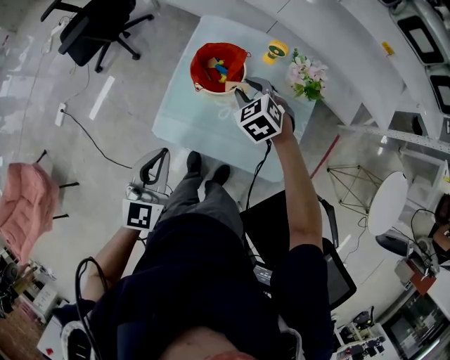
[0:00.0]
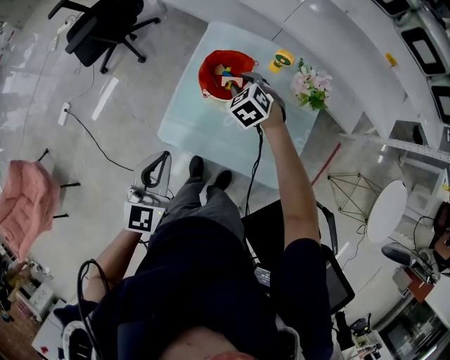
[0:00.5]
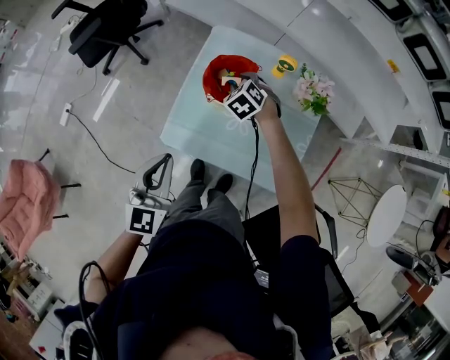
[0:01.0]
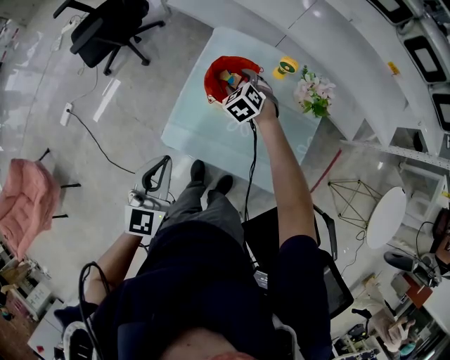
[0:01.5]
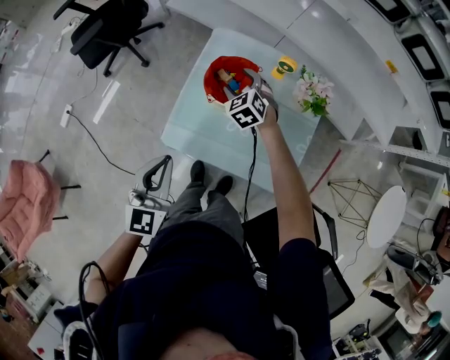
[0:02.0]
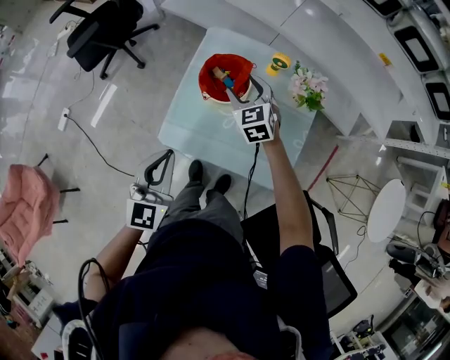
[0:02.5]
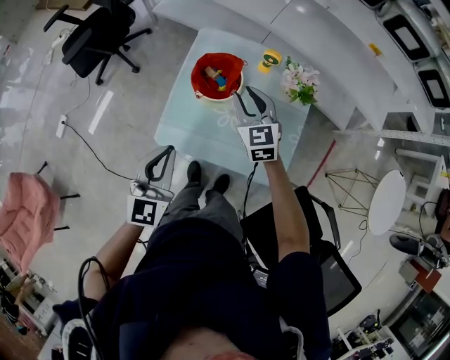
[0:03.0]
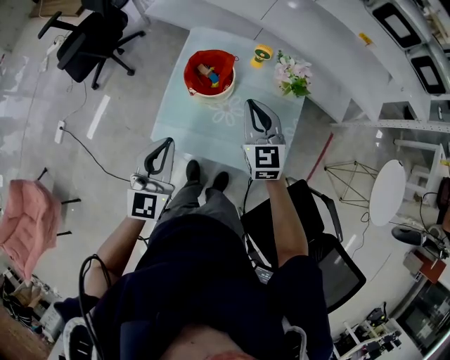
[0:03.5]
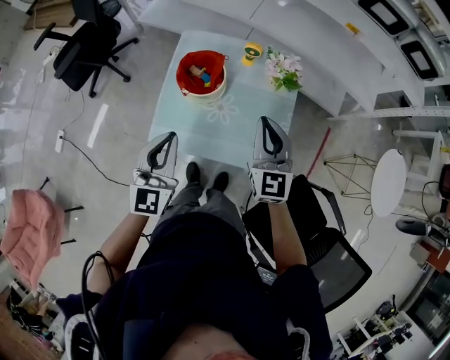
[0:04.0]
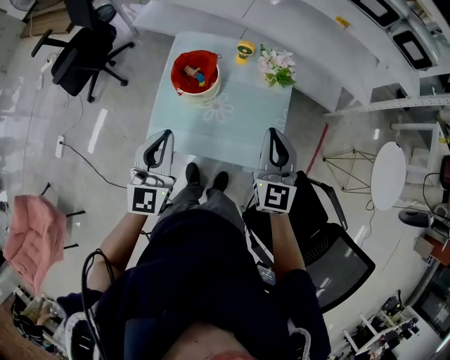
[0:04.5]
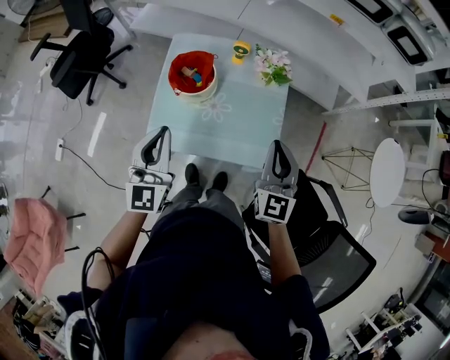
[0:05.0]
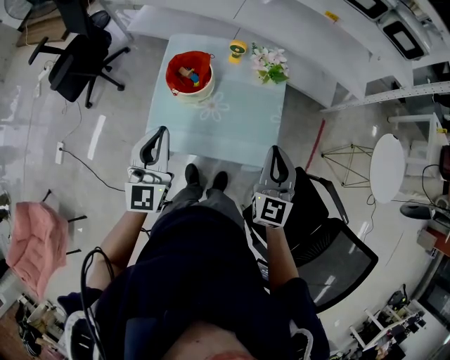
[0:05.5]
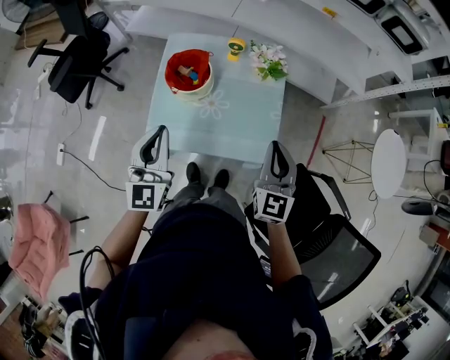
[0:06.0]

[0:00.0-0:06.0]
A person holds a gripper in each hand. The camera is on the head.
0:00.0 to 0:02.0: The right gripper travels forward and to the left by approximately 10 cm, and opens.
0:02.0 to 0:04.0: The right gripper shifts some 30 cm backward, upward and to the right, points its fingers about 40 degrees further upward, and closes; the left gripper heads to the right, covering about 5 cm.
0:04.0 to 0:06.0: The right gripper travels backward and to the right by about 10 cm.

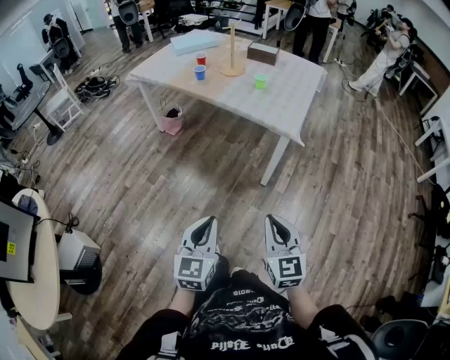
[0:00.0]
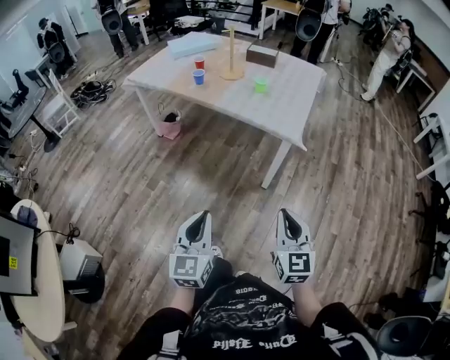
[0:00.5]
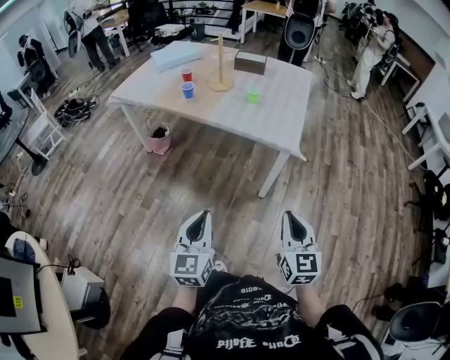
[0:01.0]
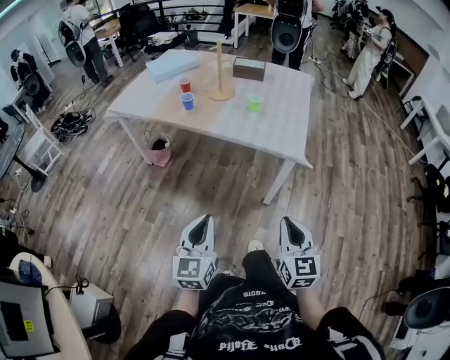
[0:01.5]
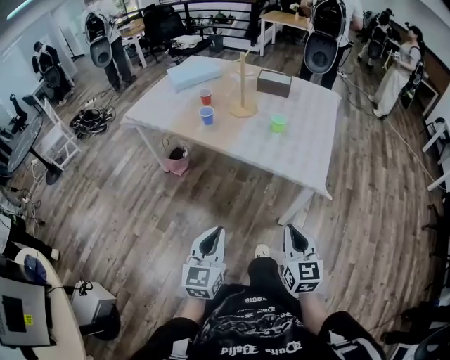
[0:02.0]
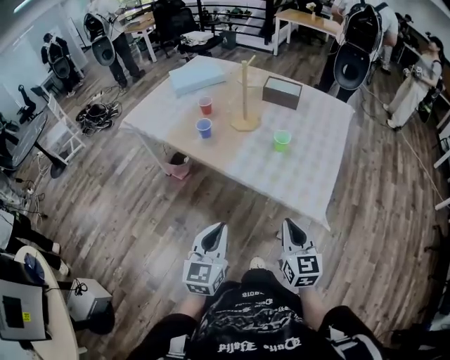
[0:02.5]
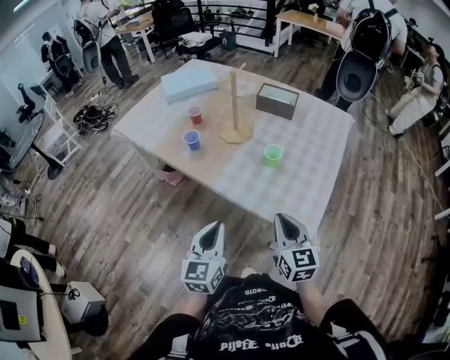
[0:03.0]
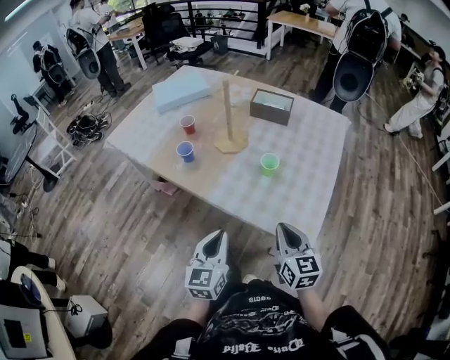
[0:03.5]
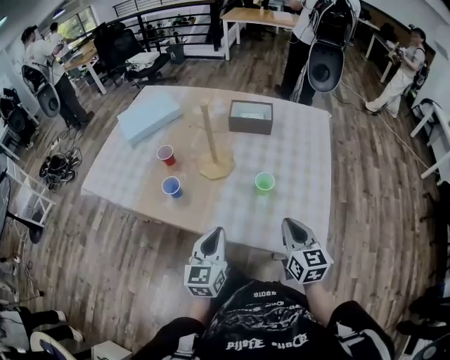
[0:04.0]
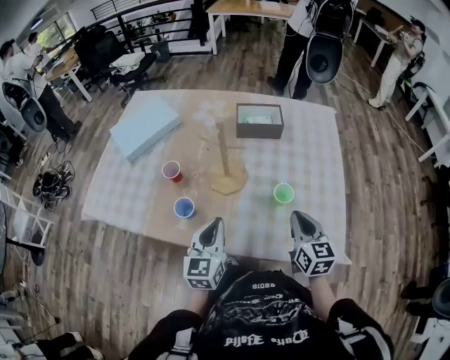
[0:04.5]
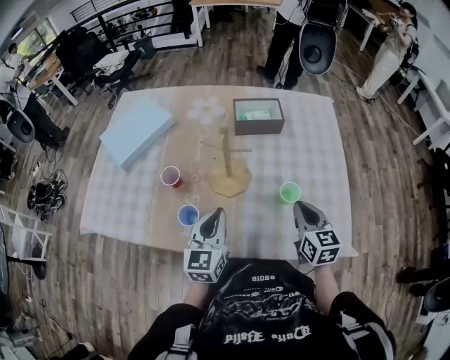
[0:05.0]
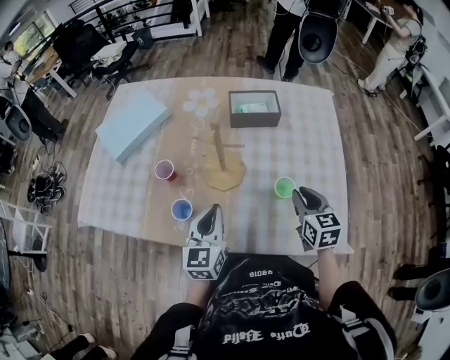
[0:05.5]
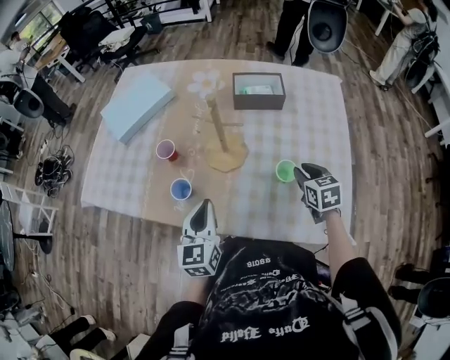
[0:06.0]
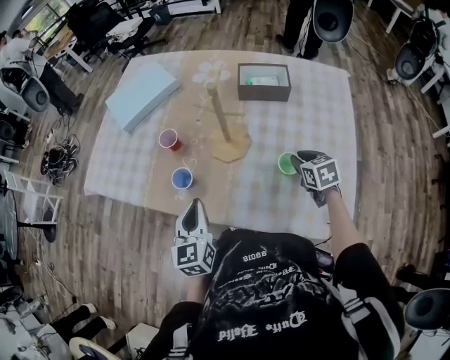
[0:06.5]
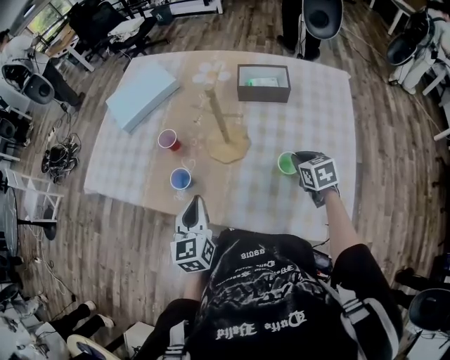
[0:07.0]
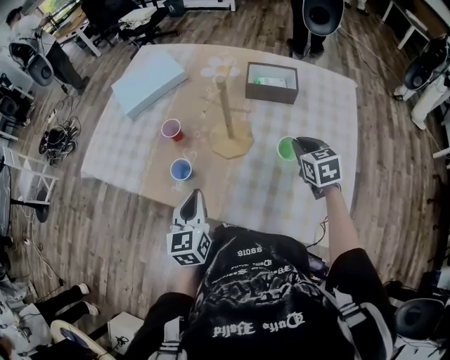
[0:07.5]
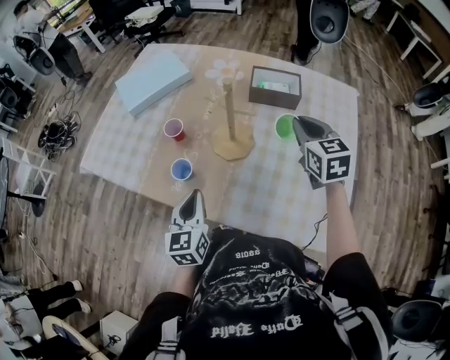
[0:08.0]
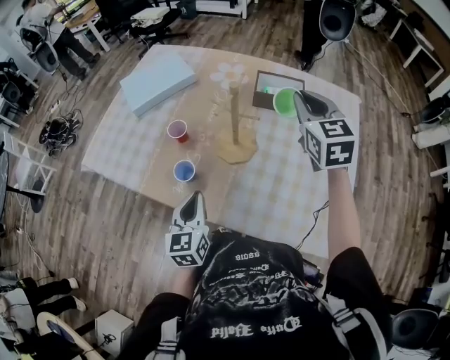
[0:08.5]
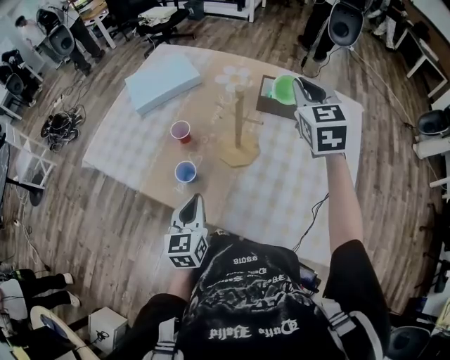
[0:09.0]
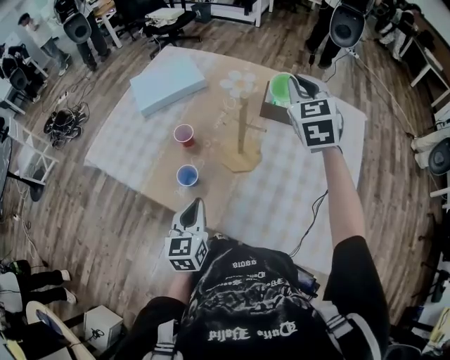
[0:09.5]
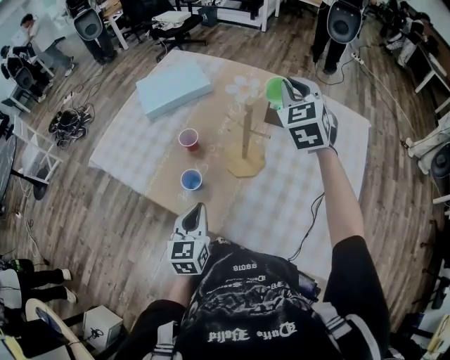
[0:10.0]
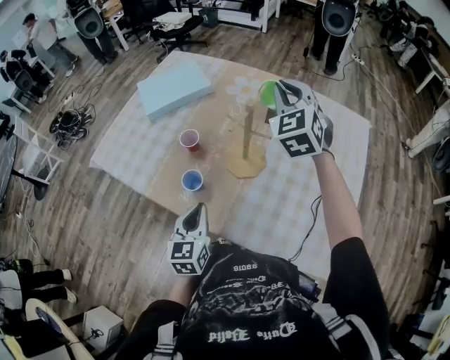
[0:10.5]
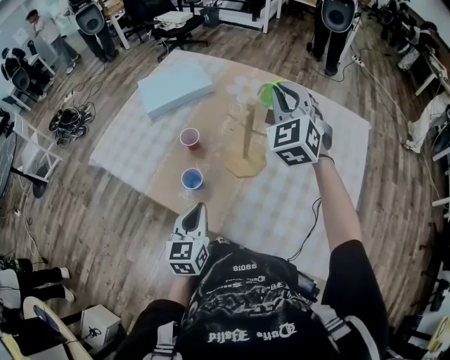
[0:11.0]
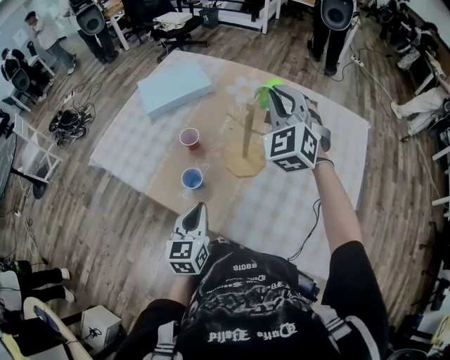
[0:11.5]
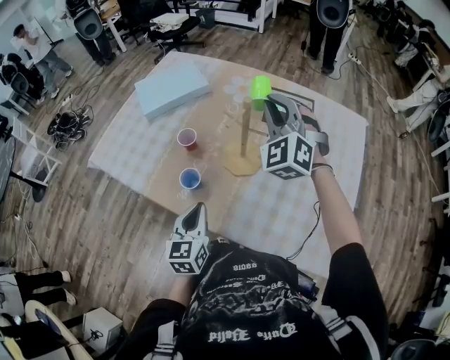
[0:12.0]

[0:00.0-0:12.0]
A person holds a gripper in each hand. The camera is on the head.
0:00.0 to 0:02.0: The right gripper goes roughly 30 cm forward. The left gripper moves forward and to the left, about 35 cm.
0:02.0 to 0:04.0: The pair of grippers is taken forward, some 50 cm.
0:04.0 to 0:06.0: The left gripper goes roughly 20 cm forward and to the left; the right gripper goes roughly 20 cm forward, changes its angle by about 20 degrees, and opens.
0:06.0 to 0:08.0: The right gripper travels upward and forward by about 15 cm, and changes its angle by roughly 20 degrees.
0:08.0 to 0:10.0: The right gripper heads upward, forward and to the left, covering roughly 20 cm, and changes its angle by roughly 30 degrees.
0:10.0 to 0:12.0: The right gripper heads backward, covering some 5 cm, and turns by roughly 20 degrees.

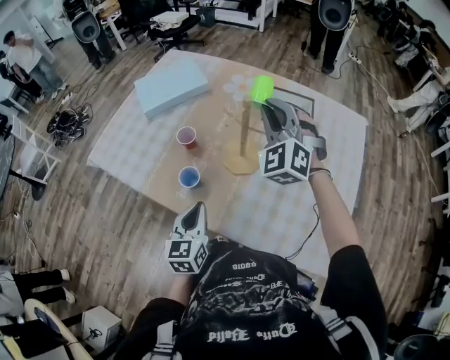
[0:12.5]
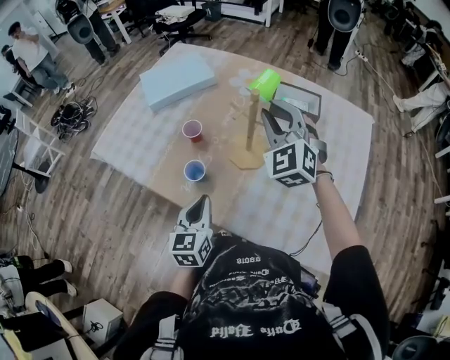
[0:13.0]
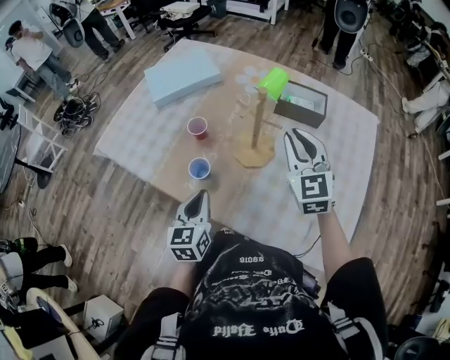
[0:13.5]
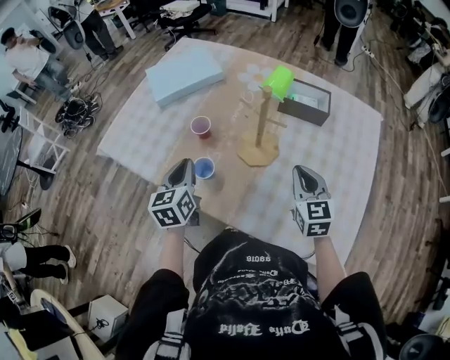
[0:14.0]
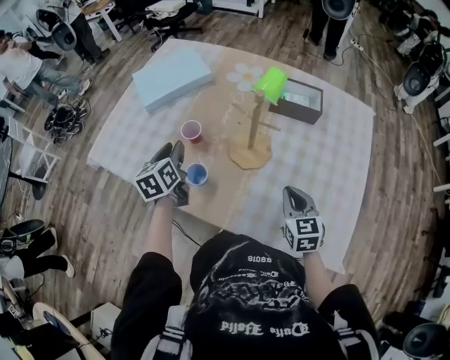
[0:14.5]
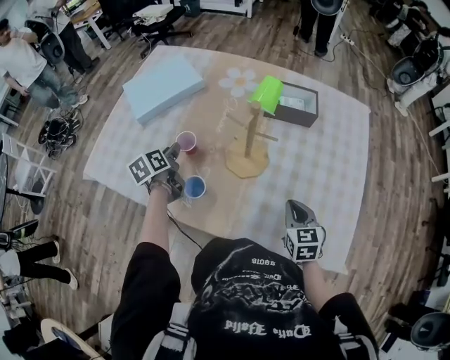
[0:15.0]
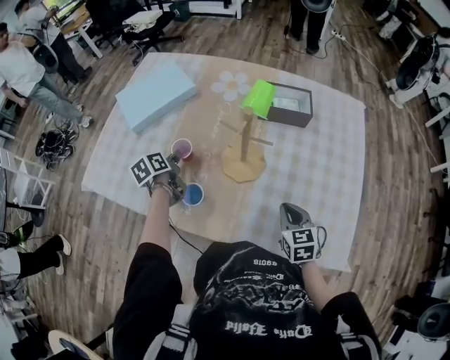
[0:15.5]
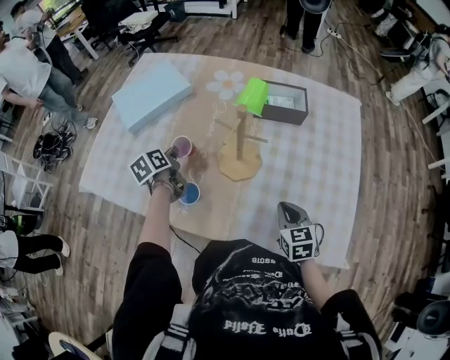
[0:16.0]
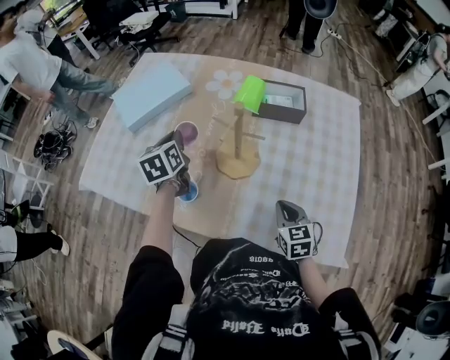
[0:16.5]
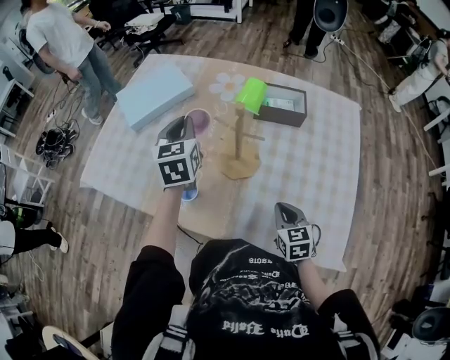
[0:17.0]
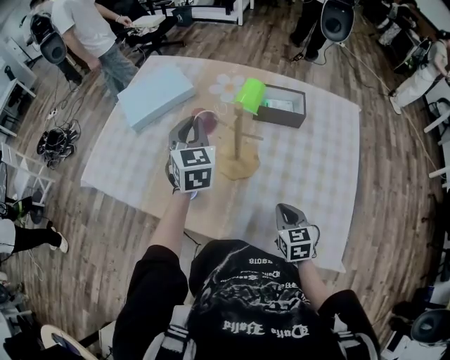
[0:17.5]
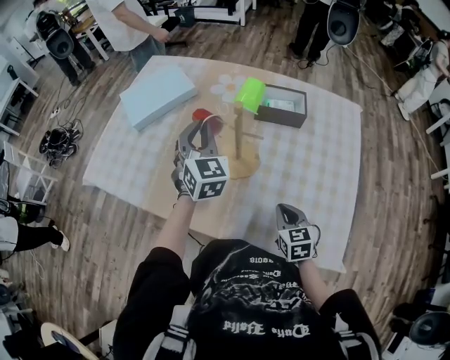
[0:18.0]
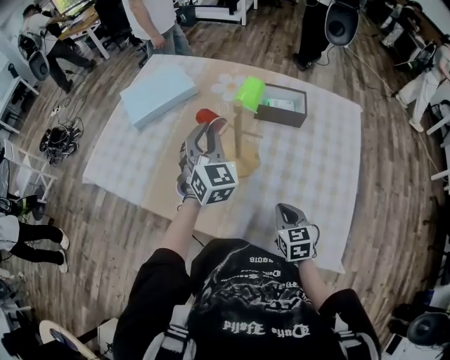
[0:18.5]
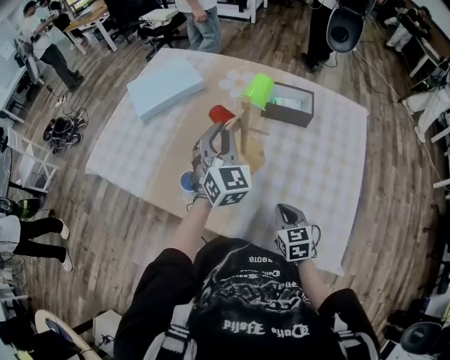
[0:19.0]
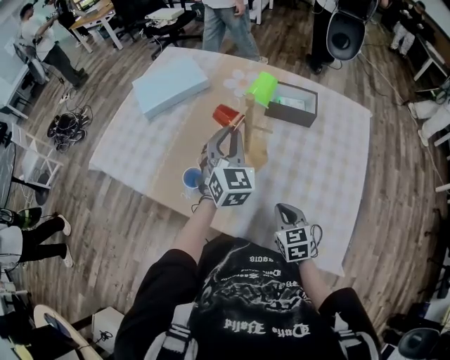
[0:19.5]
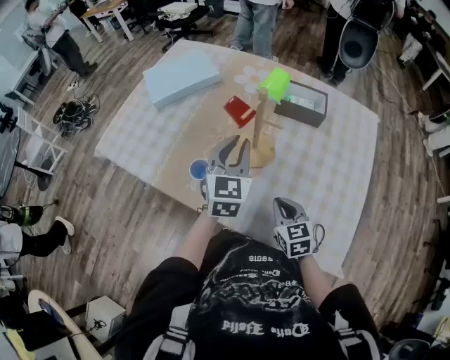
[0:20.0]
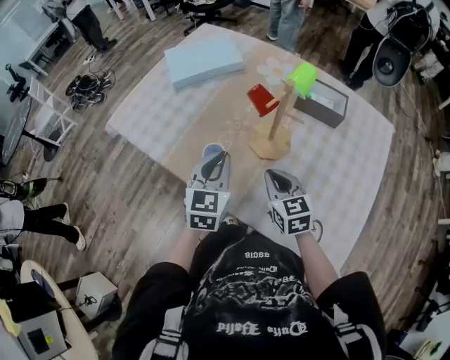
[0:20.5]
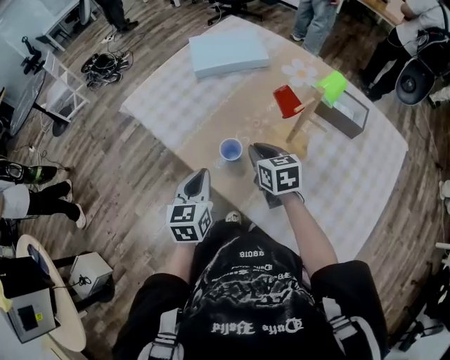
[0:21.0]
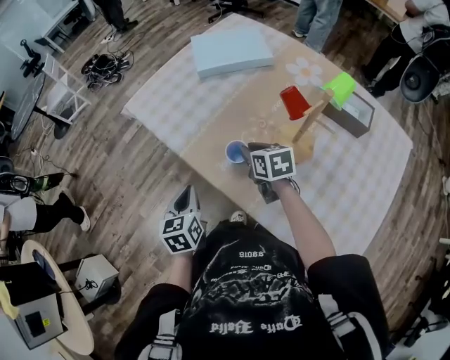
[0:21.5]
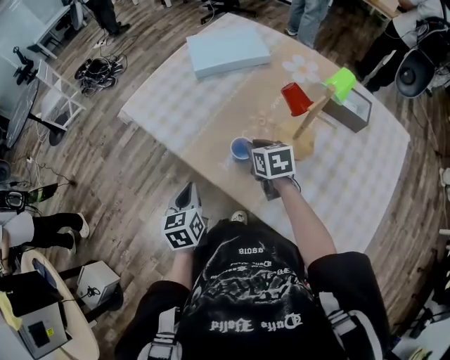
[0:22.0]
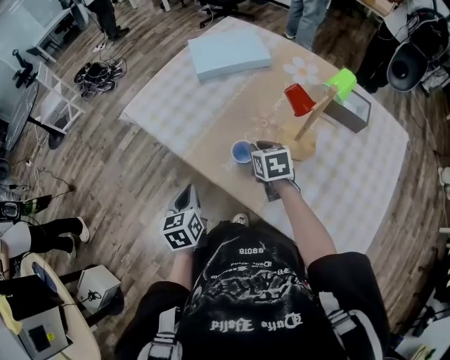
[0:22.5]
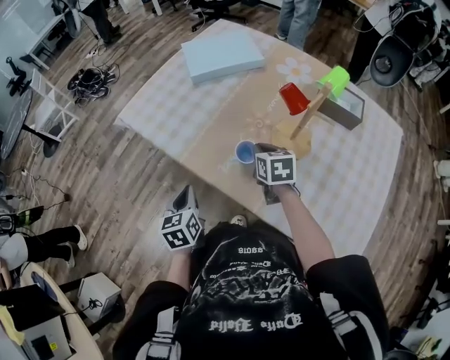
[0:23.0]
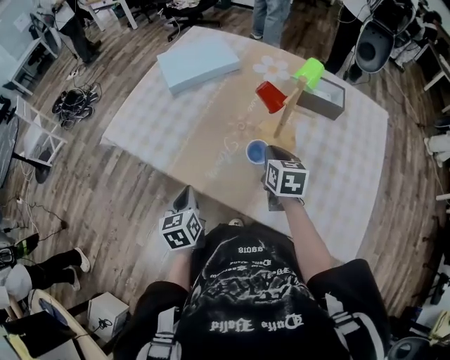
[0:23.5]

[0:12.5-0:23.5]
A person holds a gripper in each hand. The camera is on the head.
0:12.5 to 0:14.5: The left gripper shifts some 20 cm forward and to the left, and opens up; the right gripper goes approximately 25 cm downward and backward, and twists some 50 degrees clockwise, seen from behind.
0:14.5 to 0:16.0: The left gripper heads forward and downward, covering roughly 10 cm, changes its angle by some 20 degrees, and closes.
0:16.0 to 0:18.0: The left gripper moves upward and to the right, some 20 cm, and rotates around the line of its fingers by approximately 60 degrees, clockwise from behind.
0:18.0 to 0:20.0: The left gripper heads backward, covering approximately 10 cm.
0:20.0 to 0:21.5: The right gripper ends up roughly 25 cm from where it was, changes its angle by roughly 30 degrees, and opens up. The left gripper moves roughly 35 cm, and turns by roughly 50 degrees.
0:21.5 to 0:23.5: The right gripper ends up roughly 10 cm from where it was, and changes its angle by about 30 degrees.
